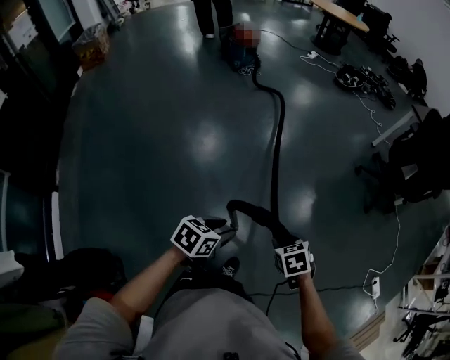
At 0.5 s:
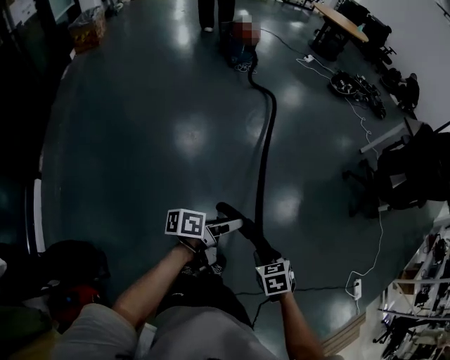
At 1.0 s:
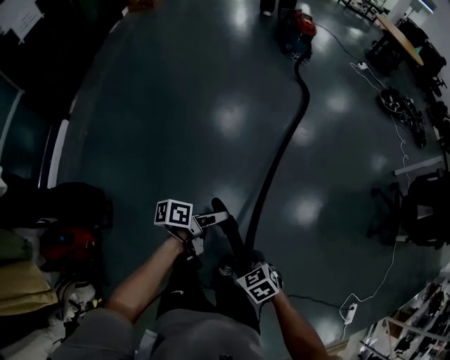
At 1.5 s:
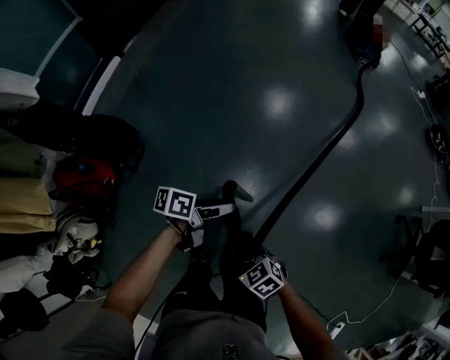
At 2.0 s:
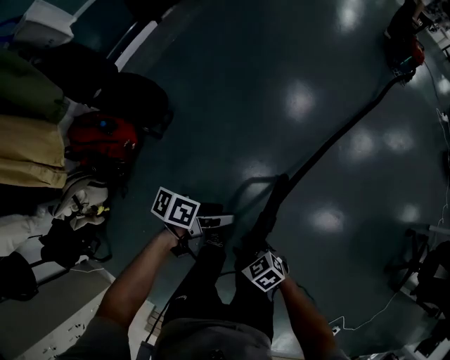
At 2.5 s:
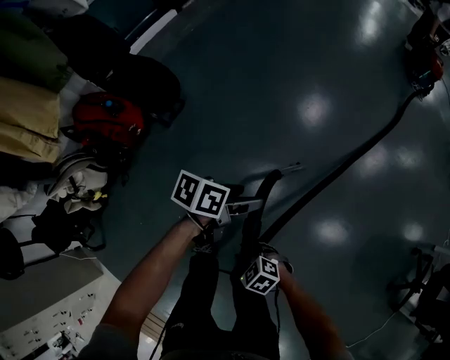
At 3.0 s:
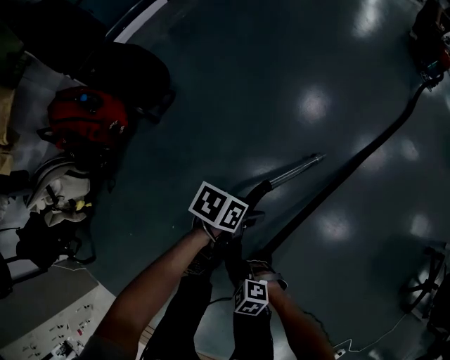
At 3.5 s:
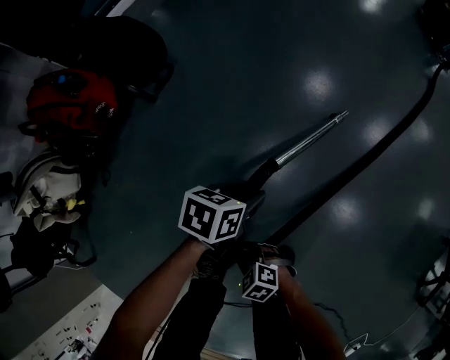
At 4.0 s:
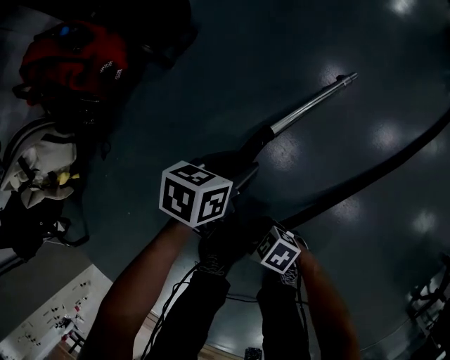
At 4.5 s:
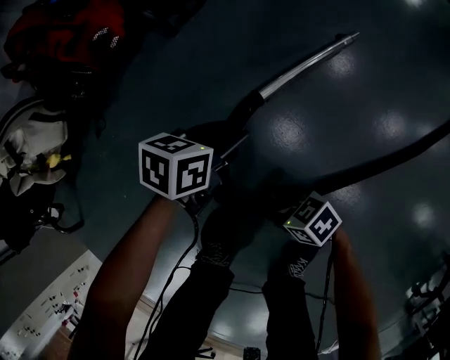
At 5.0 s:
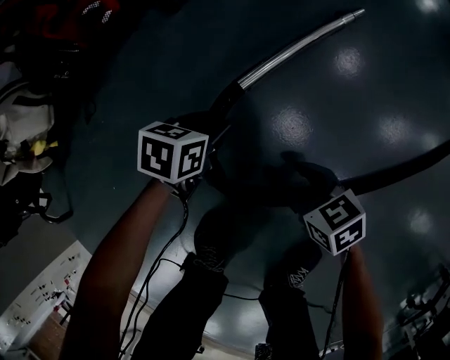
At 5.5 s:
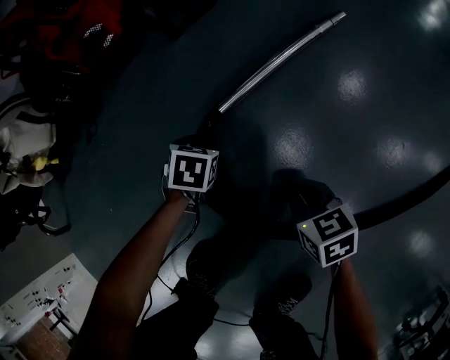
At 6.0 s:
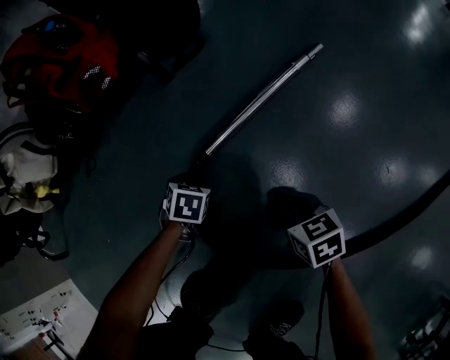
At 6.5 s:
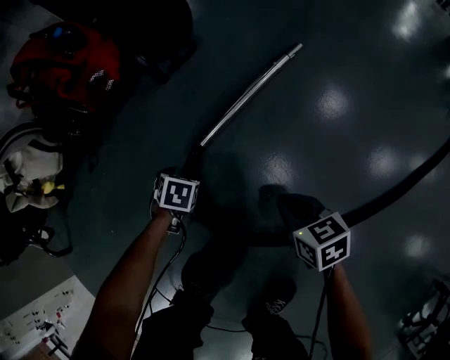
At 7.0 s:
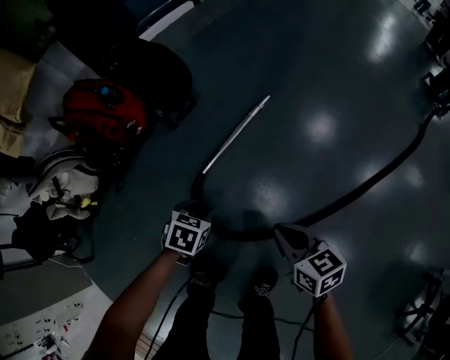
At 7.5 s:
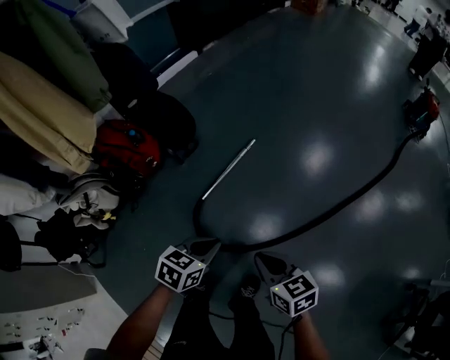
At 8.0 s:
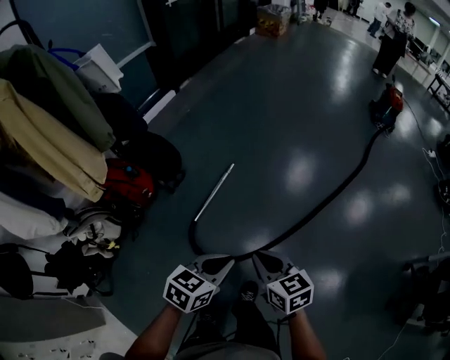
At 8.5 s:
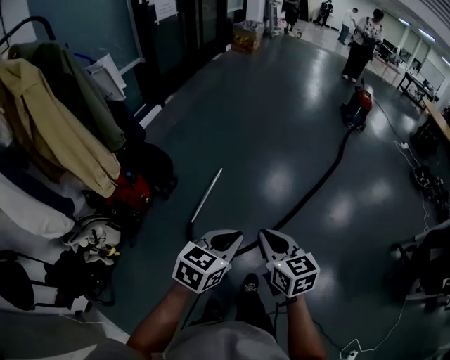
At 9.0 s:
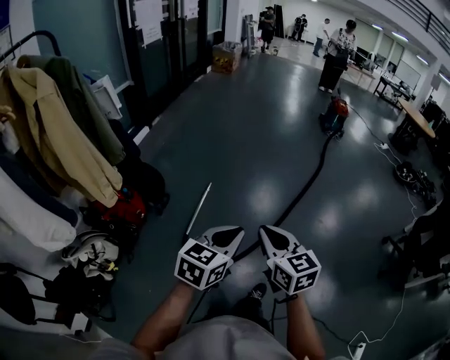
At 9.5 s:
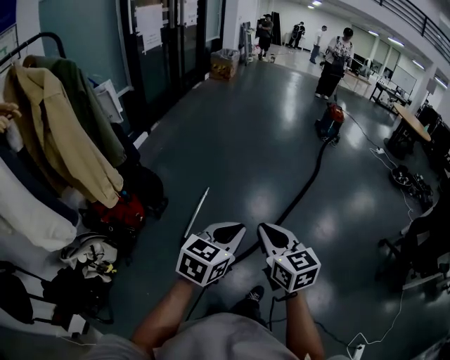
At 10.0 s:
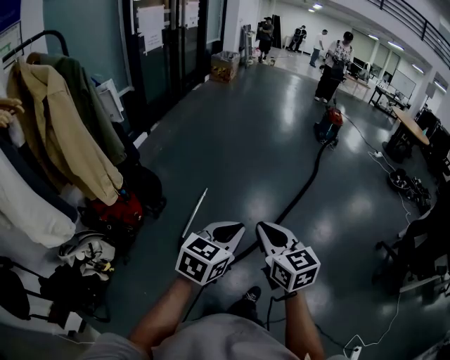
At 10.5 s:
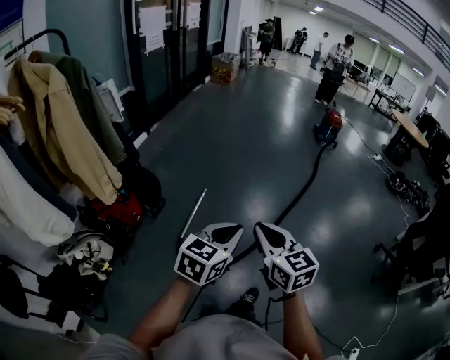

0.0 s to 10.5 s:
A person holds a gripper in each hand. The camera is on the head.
0.0 to 2.0 s: The left gripper changes place by roughly 40 cm, twists about 60 degrees counterclockwise, seen from behind, and opens, while the right gripper moves some 50 cm, and changes its angle by about 80 degrees.
2.0 to 4.0 s: The two grippers go about 40 cm downward. The right gripper rotates roughly 30 degrees, while the left gripper rotates about 30 degrees, and closes.
4.0 to 6.5 s: The right gripper moves approximately 10 cm downward and comes back, rotates some 40 degrees, and closes, while the left gripper moves downward, about 20 cm, tips its fingers downward by roughly 30 degrees, and opens up.
6.5 to 8.5 s: The two grippers go approximately 80 cm upward. The right gripper swivels approximately 40 degrees; the left gripper tilts its fingers some 50 degrees upward, and closes its fingers.
8.5 to 10.5 s: Both grippers move upward and backward, some 15 cm.

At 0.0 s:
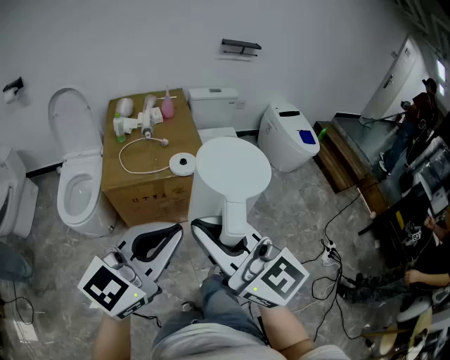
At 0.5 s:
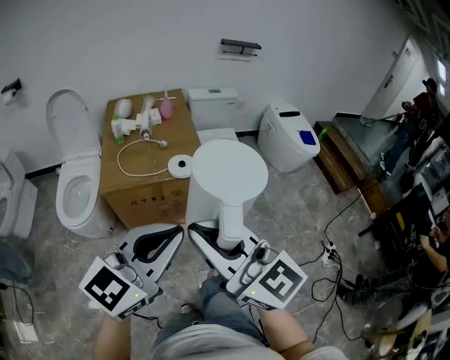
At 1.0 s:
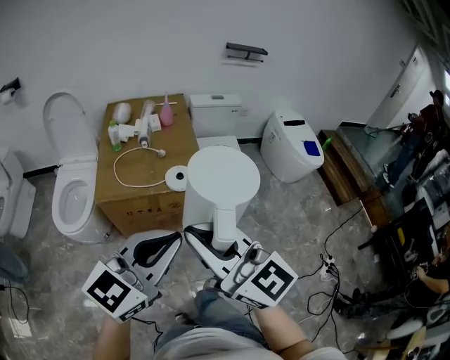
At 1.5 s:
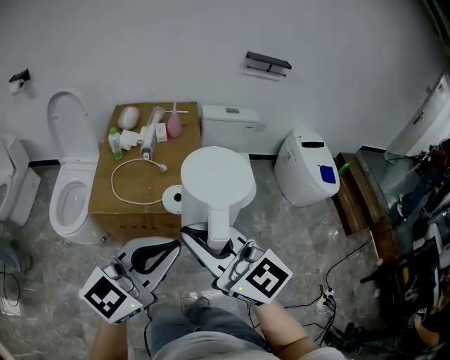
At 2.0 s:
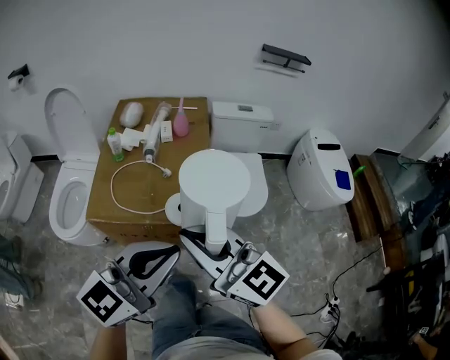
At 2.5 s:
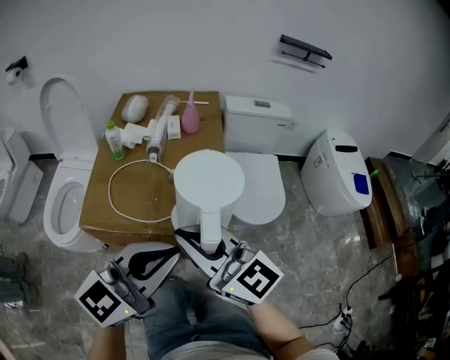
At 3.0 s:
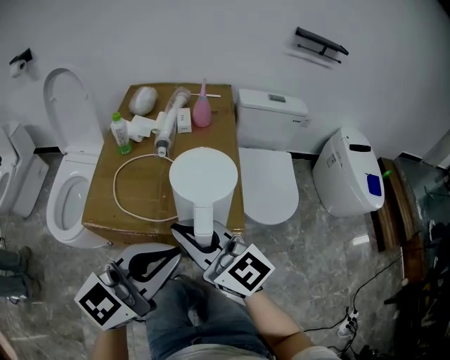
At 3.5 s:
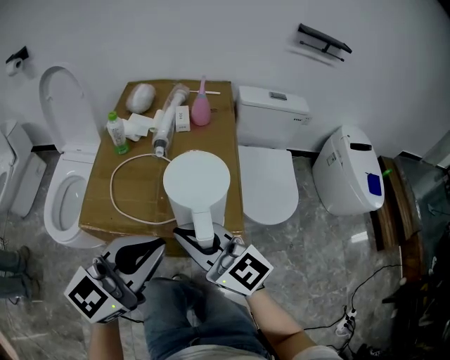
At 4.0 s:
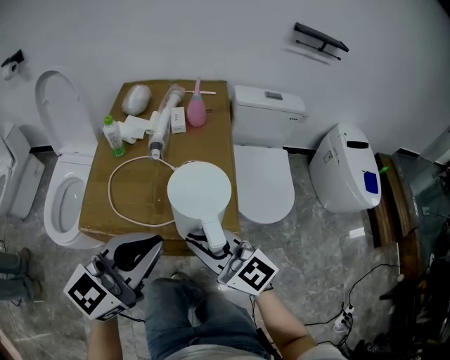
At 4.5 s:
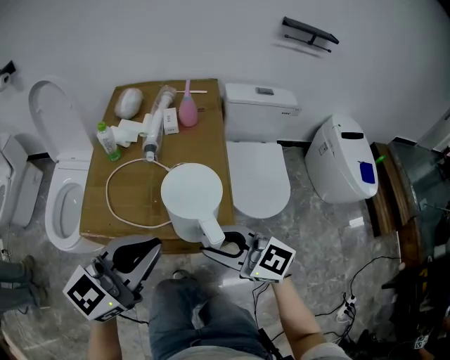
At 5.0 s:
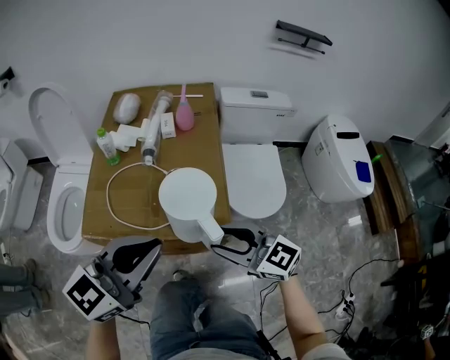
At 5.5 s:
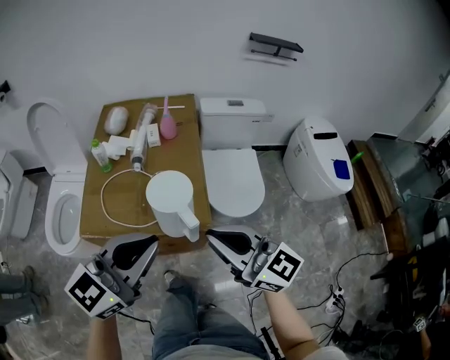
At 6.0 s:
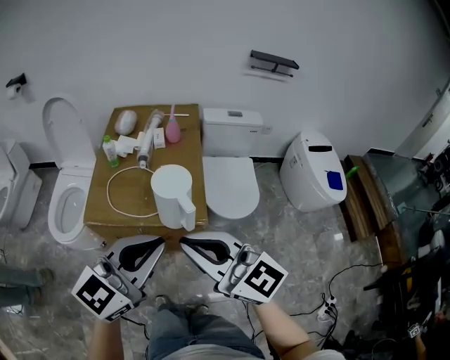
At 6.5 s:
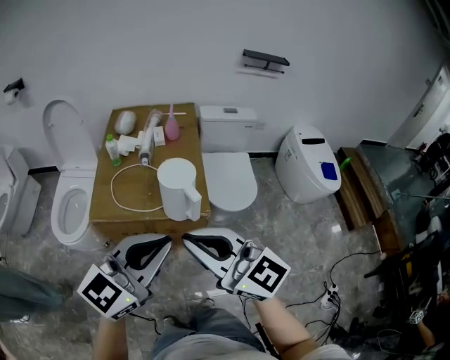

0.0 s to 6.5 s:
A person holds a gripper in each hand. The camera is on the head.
0.0 to 2.0 s: The grippers both shift forward by about 25 cm.
2.0 to 4.5 s: The right gripper heads downward and forward, covering some 25 cm, and opens, while the left gripper goes about 15 cm forward and downward.
4.5 to 6.5 s: The left gripper shifts some 20 cm backward and upward, while the right gripper shifts about 30 cm upward and backward, and closes its fingers.

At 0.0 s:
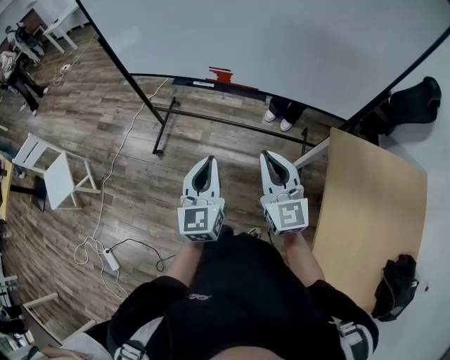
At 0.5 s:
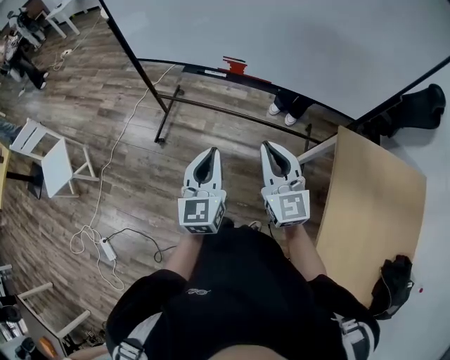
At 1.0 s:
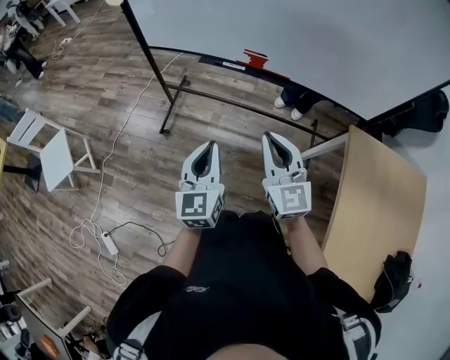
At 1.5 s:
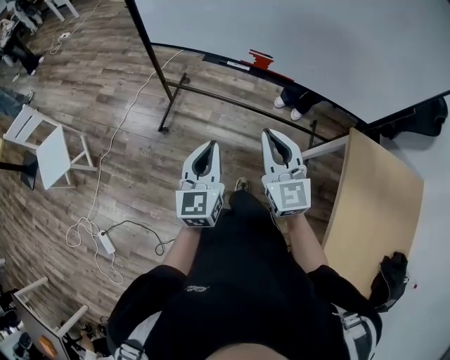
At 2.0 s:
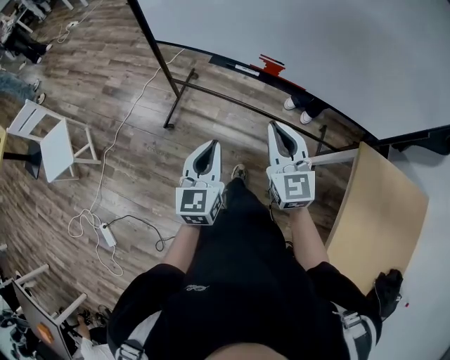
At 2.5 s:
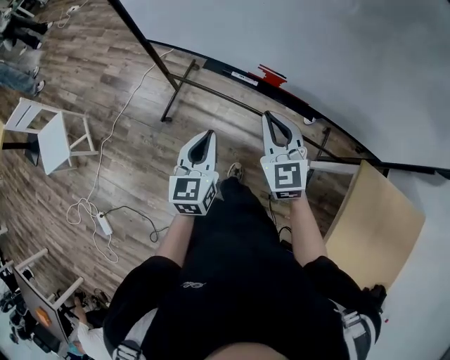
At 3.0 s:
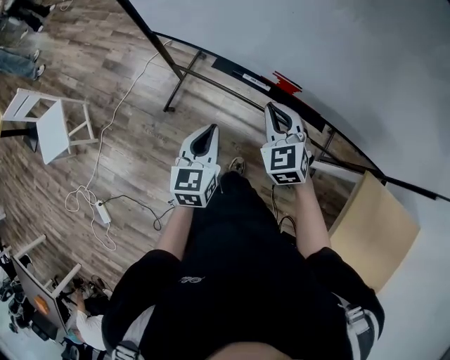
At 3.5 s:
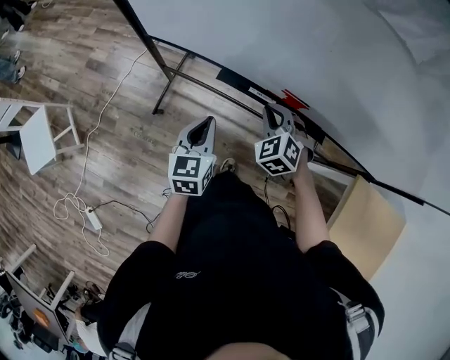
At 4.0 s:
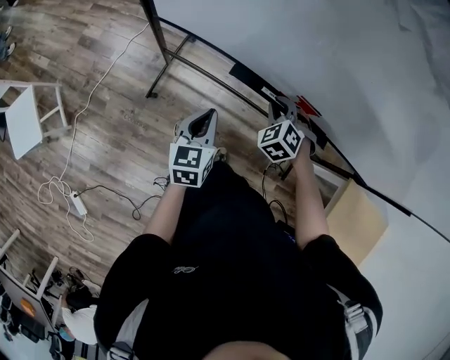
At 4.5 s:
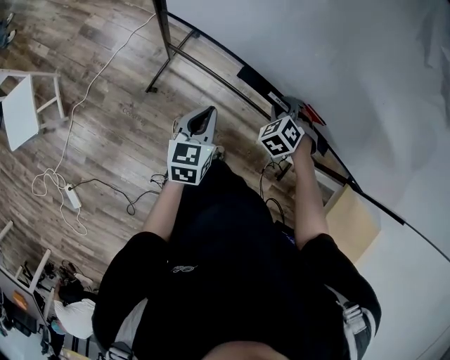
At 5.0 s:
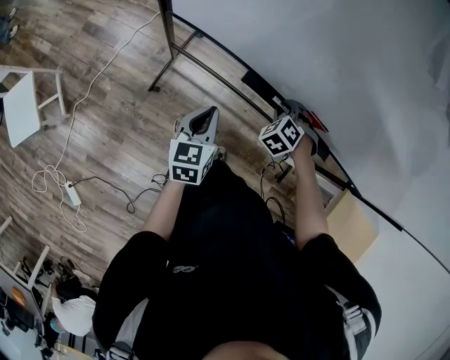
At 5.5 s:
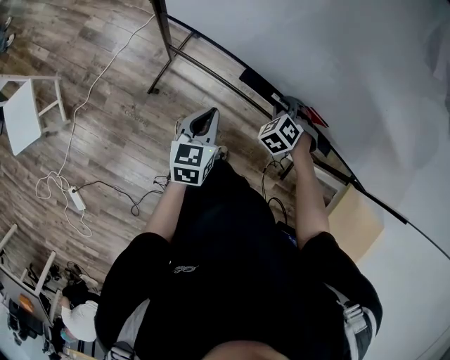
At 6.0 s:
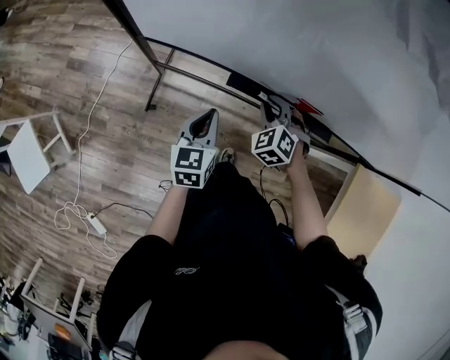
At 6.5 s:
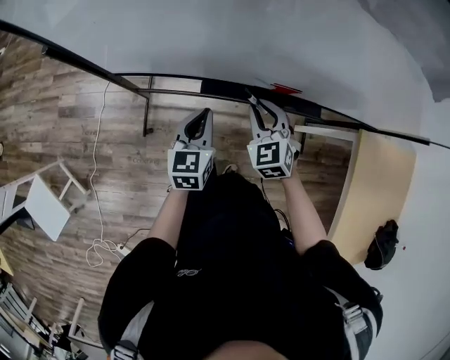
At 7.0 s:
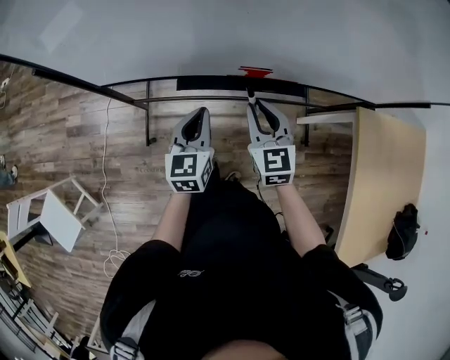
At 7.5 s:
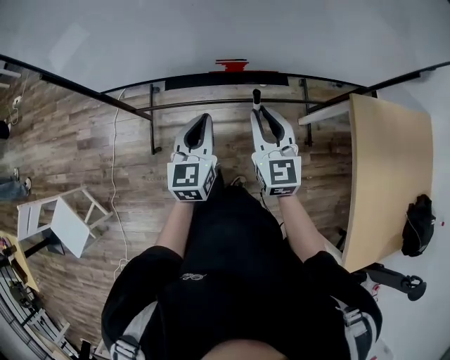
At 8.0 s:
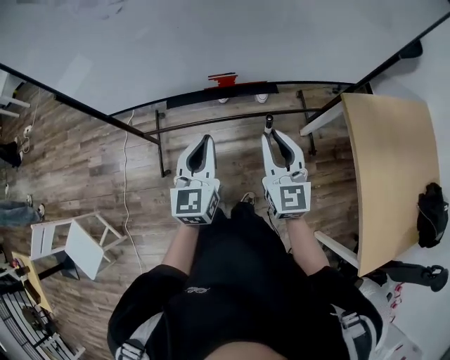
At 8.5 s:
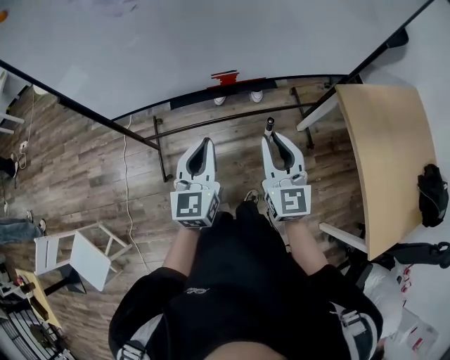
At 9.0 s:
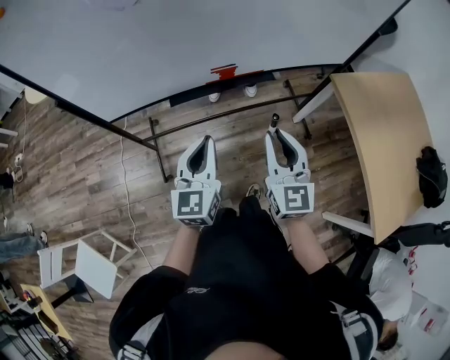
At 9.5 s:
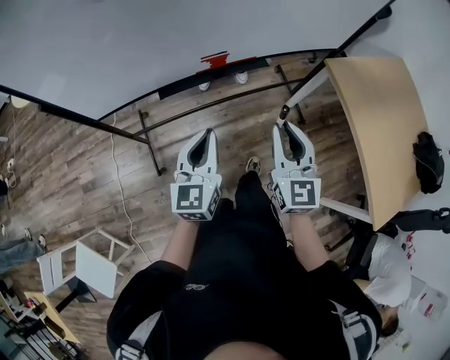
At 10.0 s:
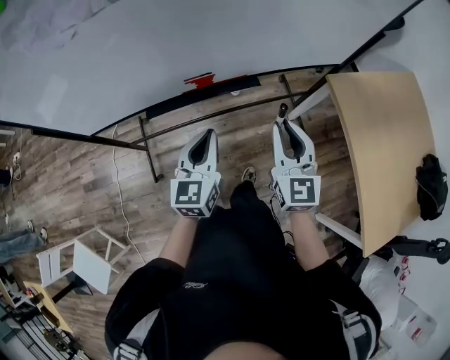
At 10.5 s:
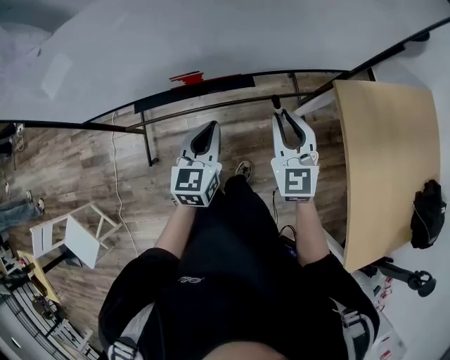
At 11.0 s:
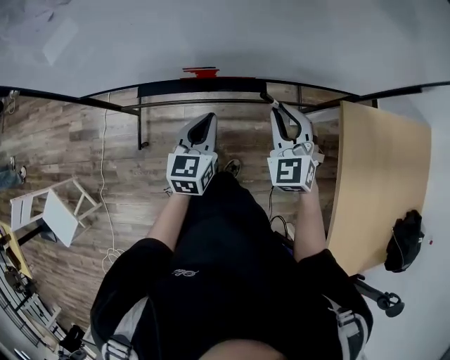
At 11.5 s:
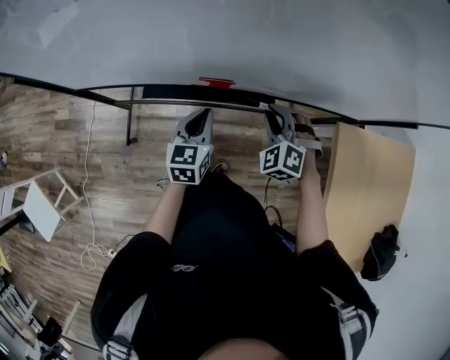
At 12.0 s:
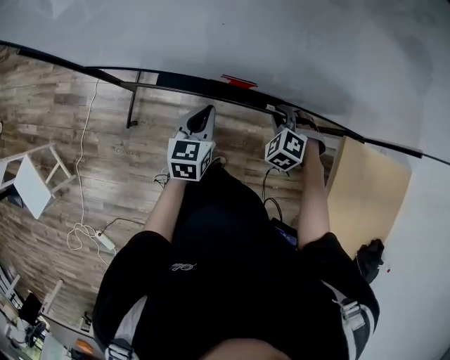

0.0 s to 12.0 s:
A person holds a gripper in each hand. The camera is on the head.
0.0 to 2.0 s: The right gripper heads forward and to the left, covering roughly 20 cm. Meanwhile the left gripper is displaced to the left, forward and downward by roughly 20 cm.
2.0 to 4.0 s: Both grippers travel together forward and downward, roughly 35 cm. The right gripper tips its fingers downward by roughly 50 degrees.
4.0 to 6.0 s: The left gripper shifts by about 5 cm.
6.0 to 8.0 s: The left gripper shifts approximately 30 cm to the right, upward and backward, and swivels approximately 30 degrees. The right gripper is displaced upward, to the right and backward by some 40 cm, and tilts its fingers about 40 degrees upward.
8.0 to 10.0 s: The left gripper is displaced forward by roughly 5 cm. The right gripper is displaced to the right by approximately 5 cm.
10.0 to 12.0 s: The right gripper goes roughly 30 cm downward and forward, and tips its fingers downward by approximately 50 degrees. The left gripper goes about 20 cm downward, forward and to the left, and rotates some 30 degrees.
